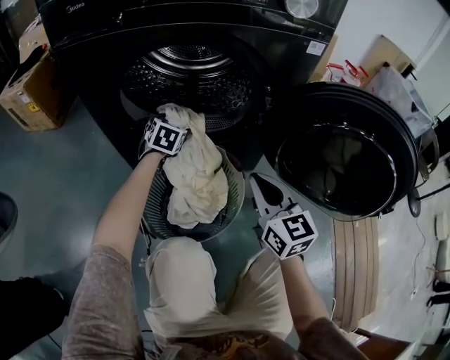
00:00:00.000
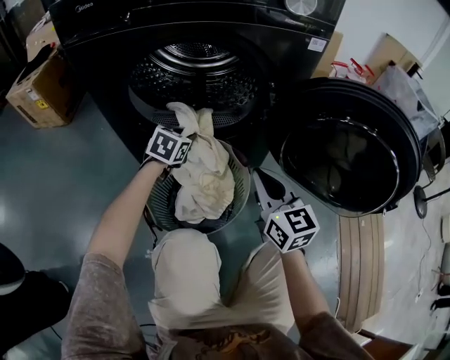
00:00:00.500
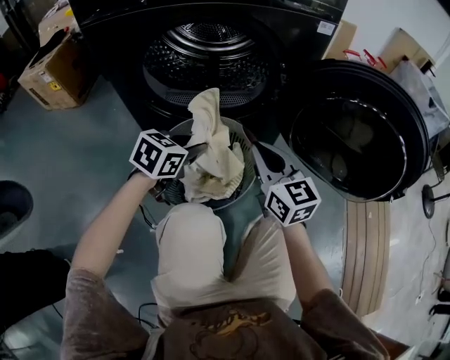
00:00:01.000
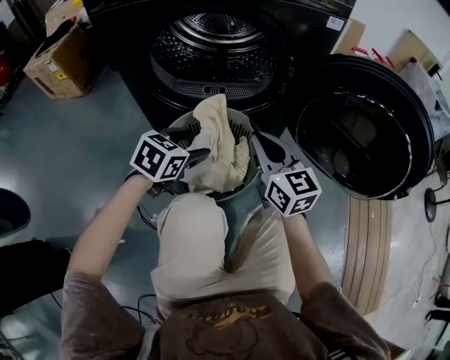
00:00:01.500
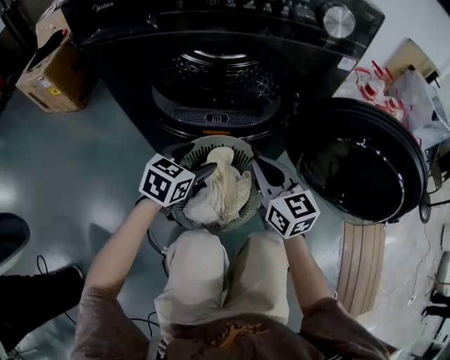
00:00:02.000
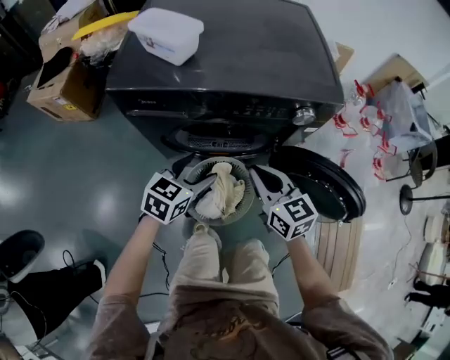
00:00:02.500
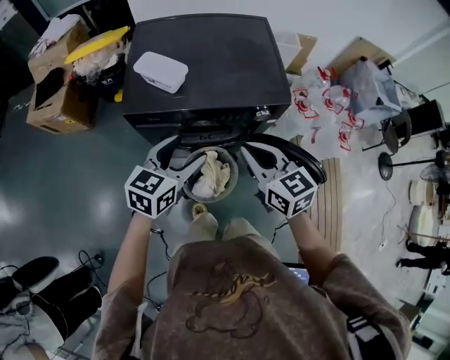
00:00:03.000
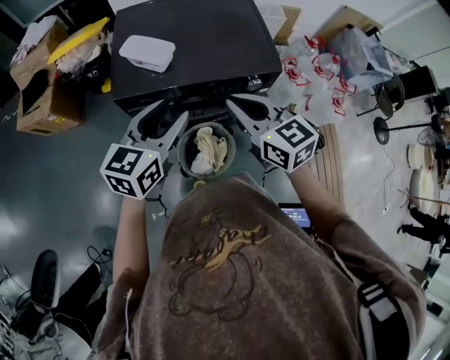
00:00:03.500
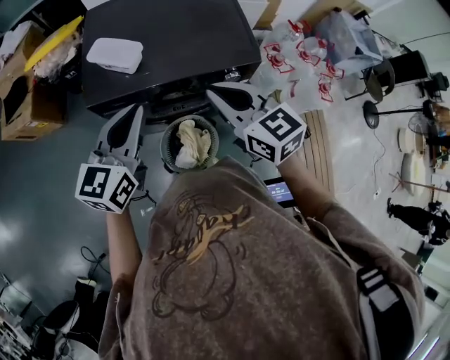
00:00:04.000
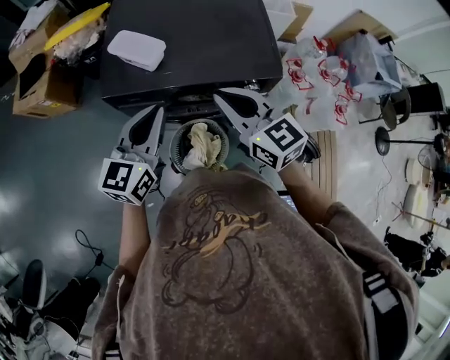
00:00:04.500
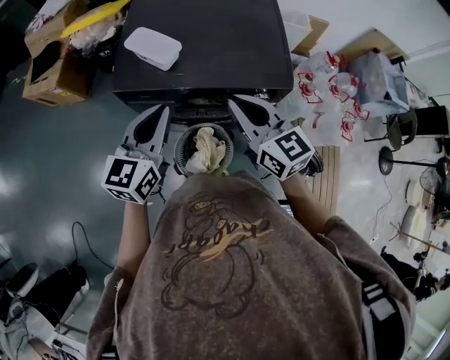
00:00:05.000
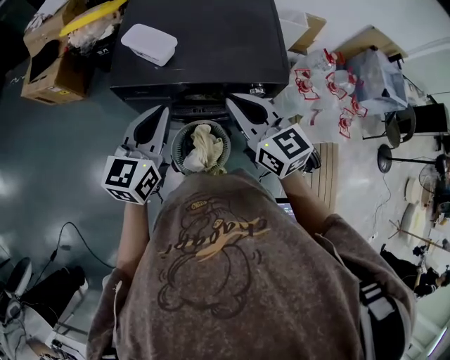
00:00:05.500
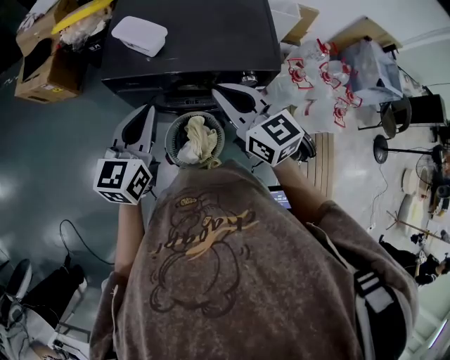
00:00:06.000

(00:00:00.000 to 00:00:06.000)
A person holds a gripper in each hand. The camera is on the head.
00:00:00.000 - 00:00:02.000: The left gripper moves backward and upward, about 20 cm, turns by some 20 degrees, and closes, then opens again, while the right gripper moves to the left, some 5 cm.
00:00:02.000 - 00:00:04.000: The two grippers go some 60 cm upward. The left gripper turns by some 30 degrees, and closes.
00:00:04.000 - 00:00:06.000: There are only small adjustments of the grippers.

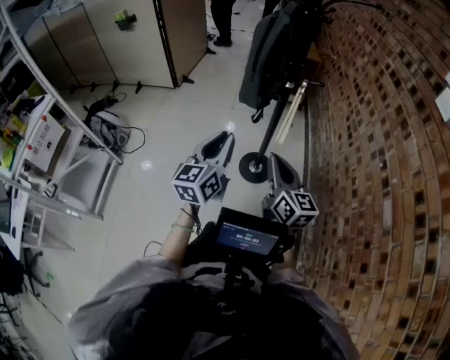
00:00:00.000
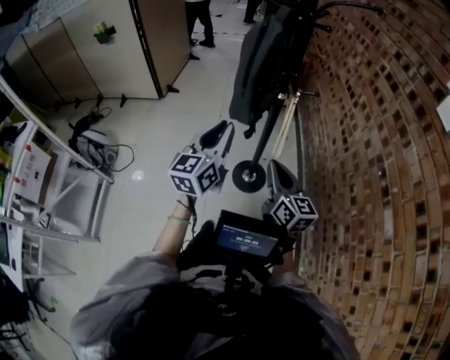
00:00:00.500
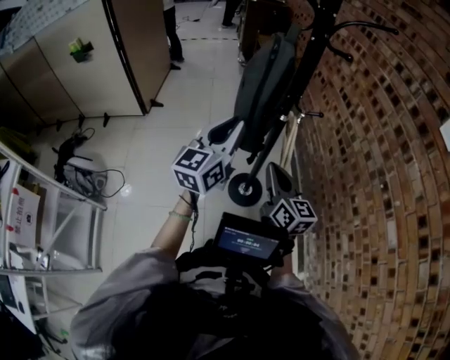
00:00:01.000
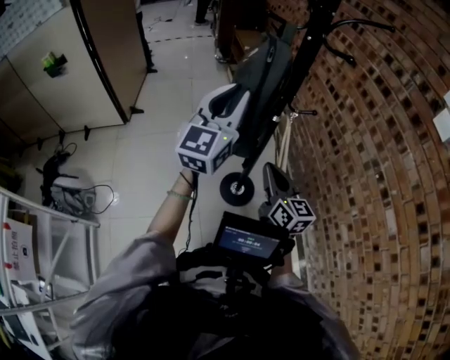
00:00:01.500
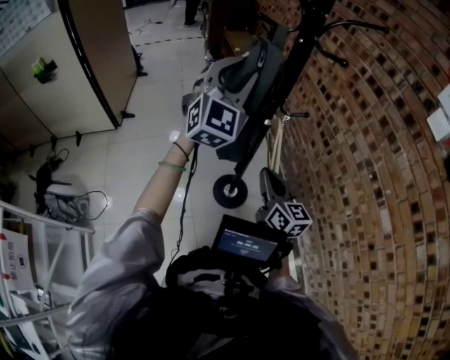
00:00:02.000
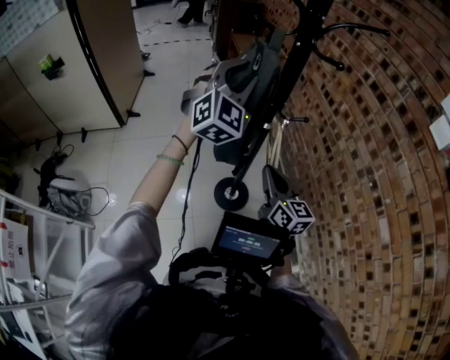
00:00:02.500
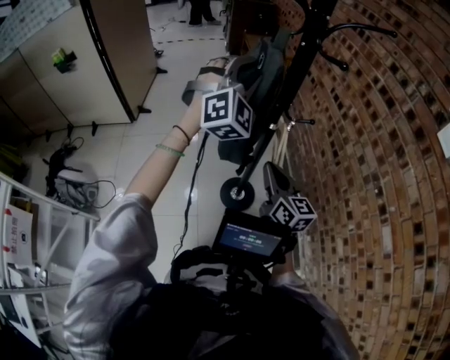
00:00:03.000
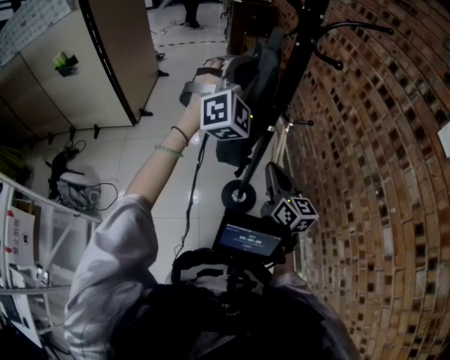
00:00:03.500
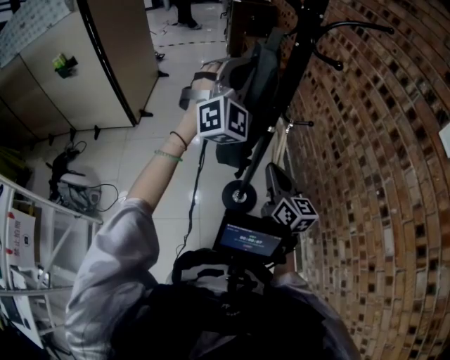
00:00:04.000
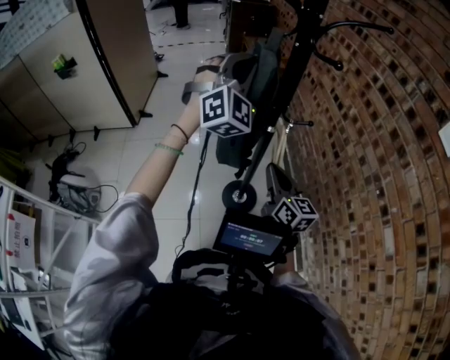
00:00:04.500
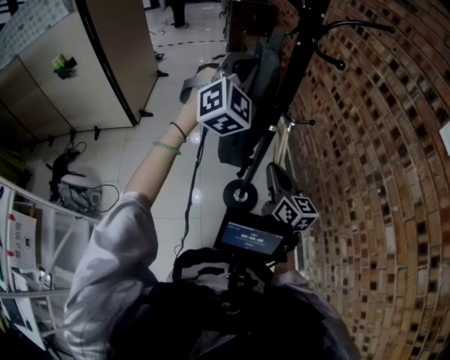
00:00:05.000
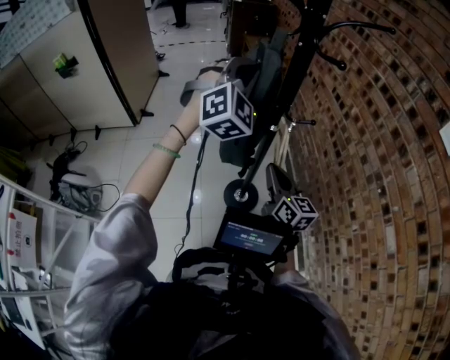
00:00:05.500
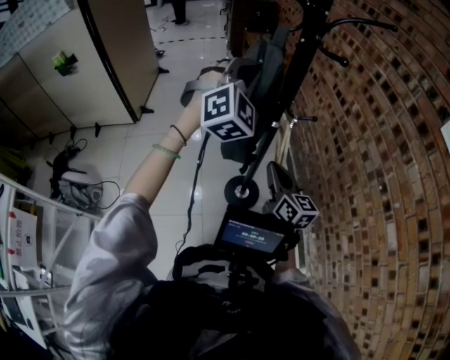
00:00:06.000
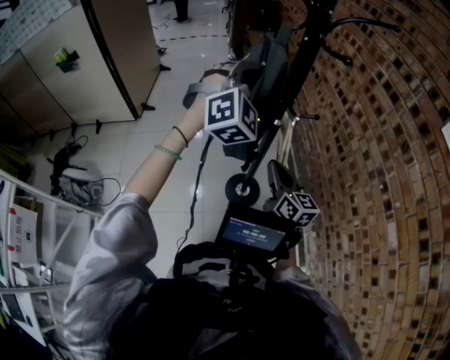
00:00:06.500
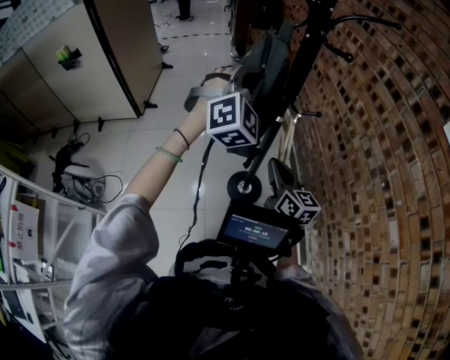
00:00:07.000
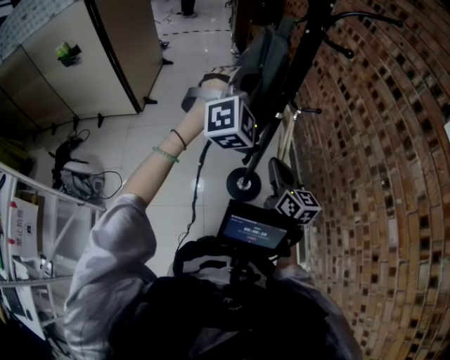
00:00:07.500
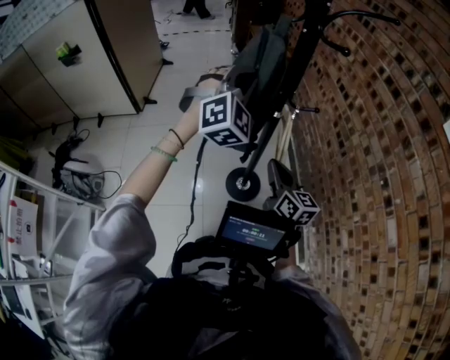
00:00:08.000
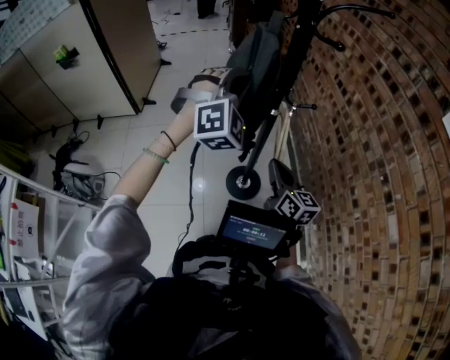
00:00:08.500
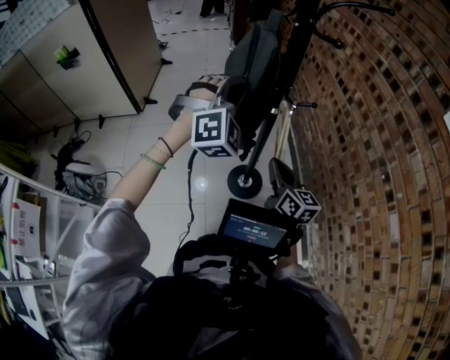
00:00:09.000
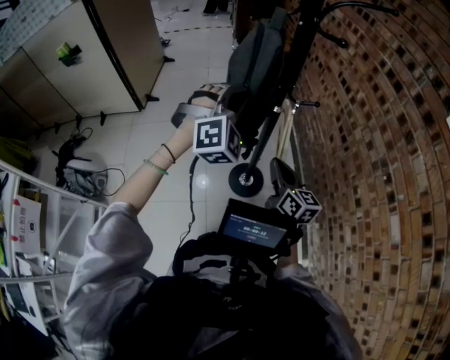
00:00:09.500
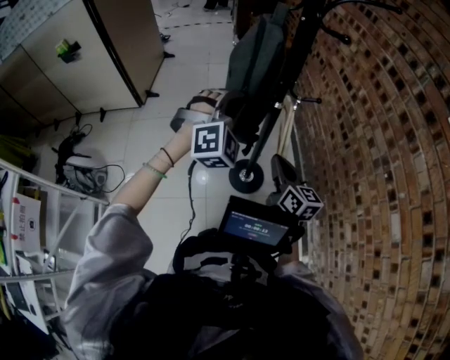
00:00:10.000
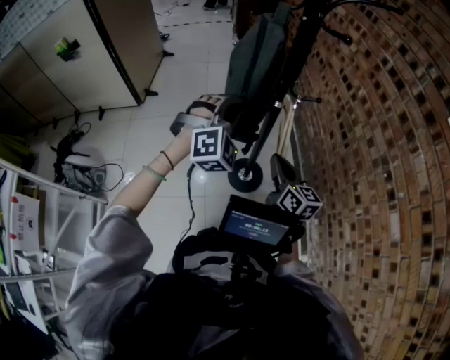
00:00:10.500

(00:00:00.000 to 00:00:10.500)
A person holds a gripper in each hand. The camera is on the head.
00:00:00.000 - 00:00:02.000: The right gripper travels forward by roughly 20 cm. Meanwhile the left gripper moves forward and upward, about 35 cm, and rotates around the line of its fingers by approximately 50 degrees, clockwise from behind.
00:00:02.000 - 00:00:04.000: The left gripper rotates about 30 degrees, and closes its fingers.
00:00:04.000 - 00:00:06.500: The grippers move only a little.
00:00:06.500 - 00:00:08.500: The grippers move only a little.
00:00:08.500 - 00:00:10.500: The left gripper heads downward, covering about 10 cm.

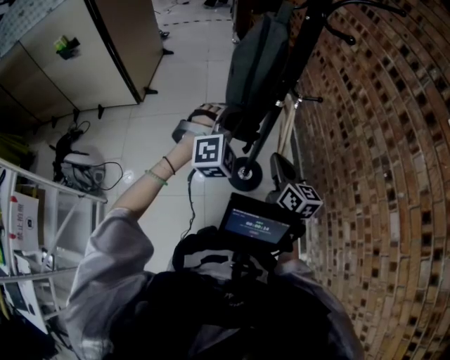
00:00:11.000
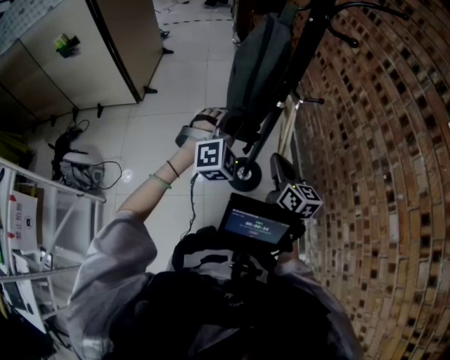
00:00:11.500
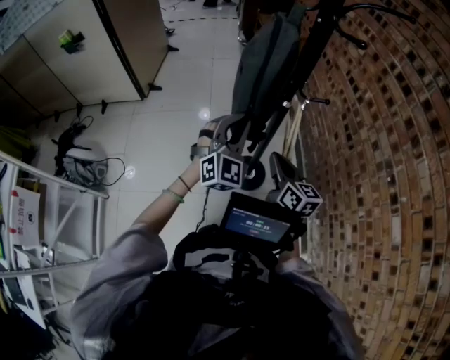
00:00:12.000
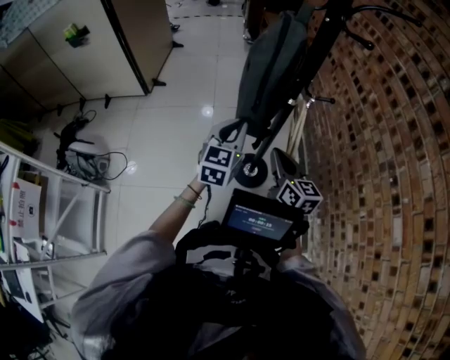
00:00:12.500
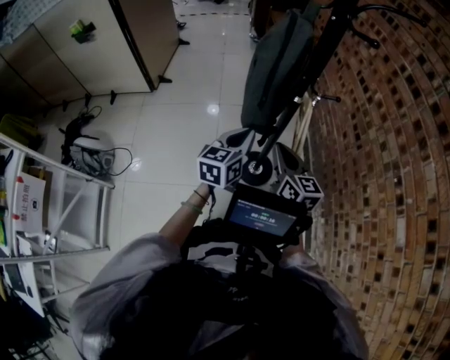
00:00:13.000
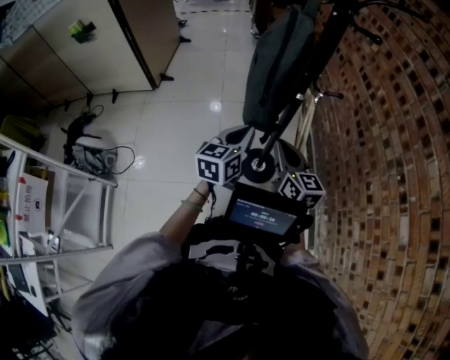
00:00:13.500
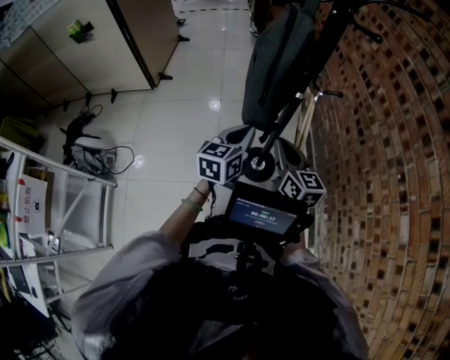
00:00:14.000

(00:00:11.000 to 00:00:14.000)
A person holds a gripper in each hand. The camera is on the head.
00:00:11.000 - 00:00:12.500: The left gripper shifts by some 5 cm, and rolls counterclockwise, seen from behind, by roughly 70 degrees.

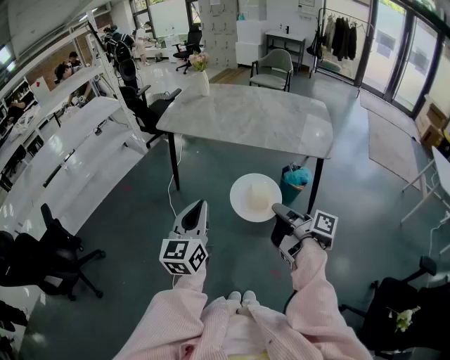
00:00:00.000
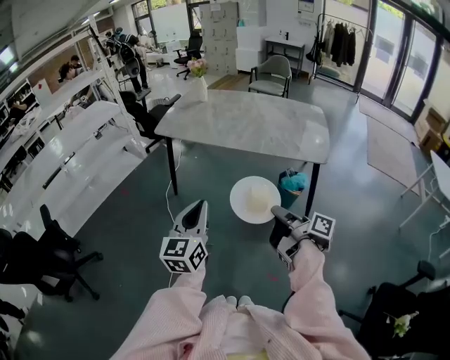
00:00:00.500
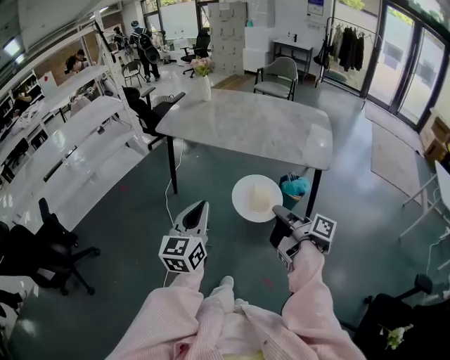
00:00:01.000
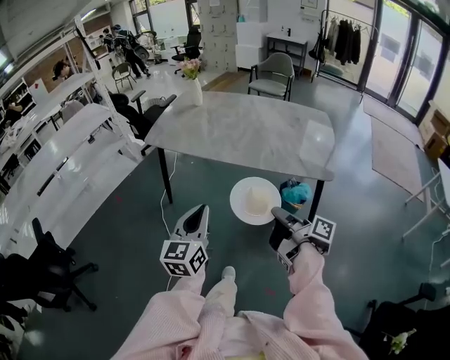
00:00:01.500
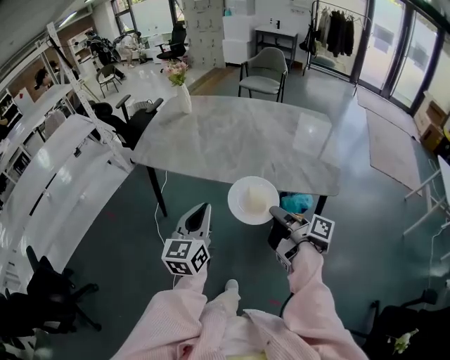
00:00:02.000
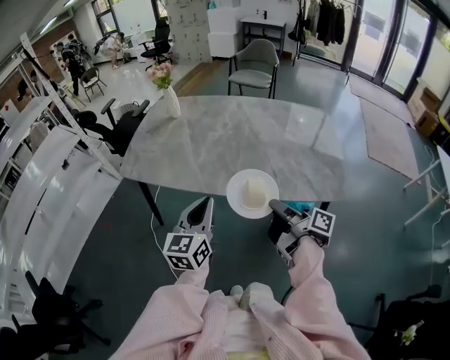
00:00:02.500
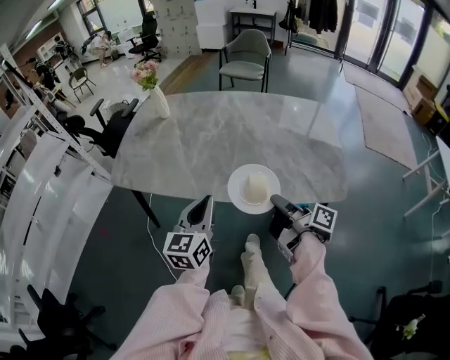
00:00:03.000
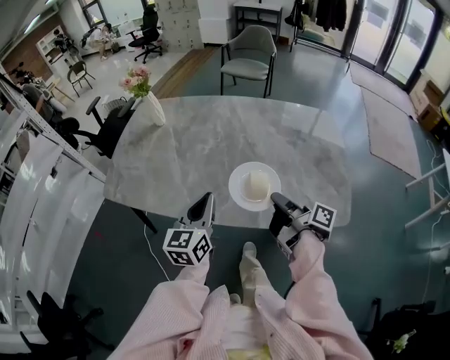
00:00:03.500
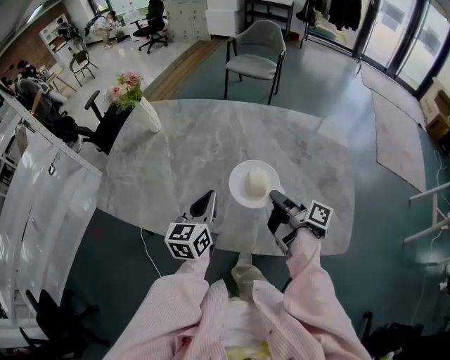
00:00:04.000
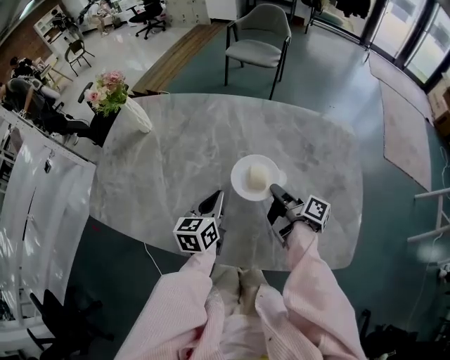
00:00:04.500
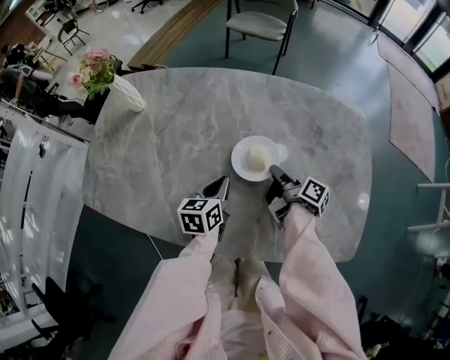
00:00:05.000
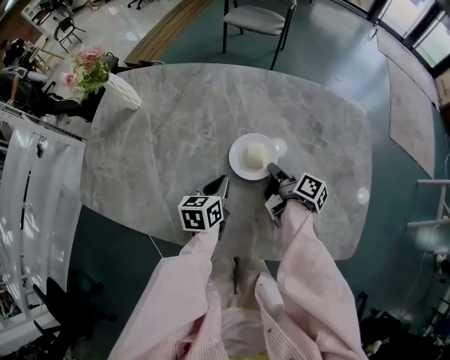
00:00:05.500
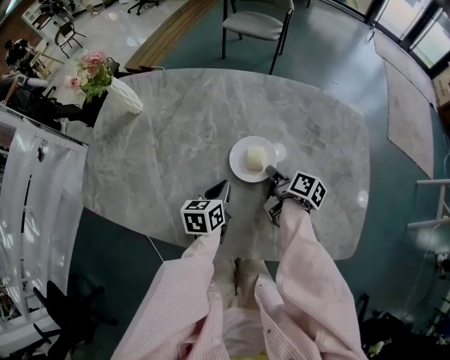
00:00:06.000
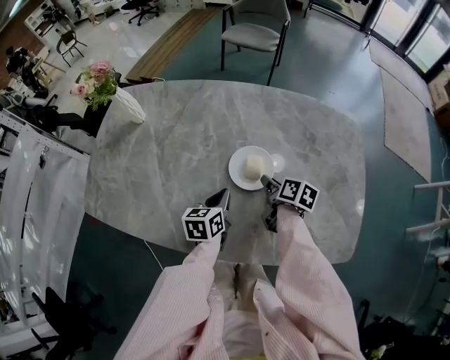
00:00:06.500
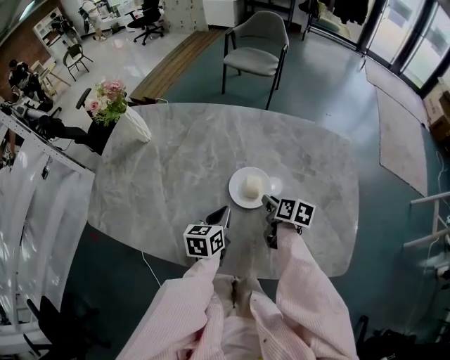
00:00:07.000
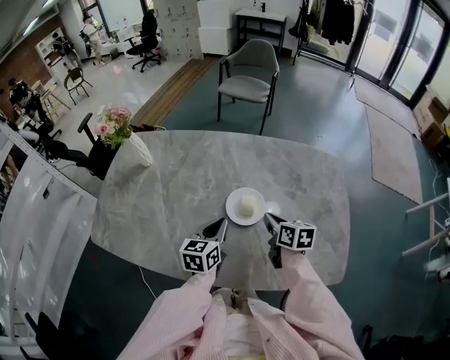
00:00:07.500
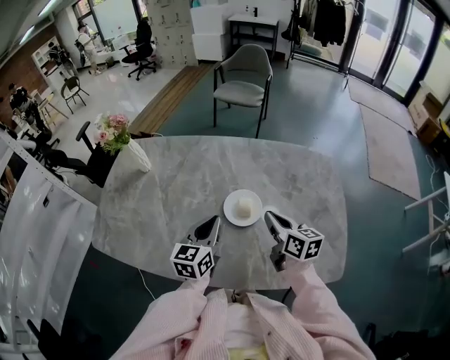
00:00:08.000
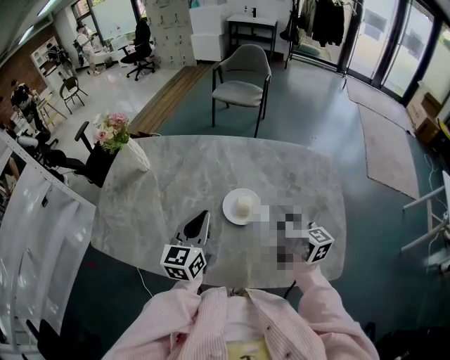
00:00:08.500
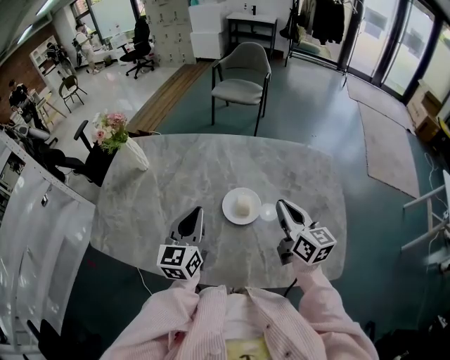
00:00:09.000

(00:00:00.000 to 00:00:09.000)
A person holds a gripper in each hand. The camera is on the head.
00:00:00.000 - 00:00:02.000: The left gripper changes place by roughly 30 cm.
00:00:02.000 - 00:00:04.500: The left gripper changes place by some 50 cm, and swivels about 20 degrees.
00:00:07.000 - 00:00:09.000: The left gripper heads upward, covering about 15 cm, and swivels some 30 degrees.
